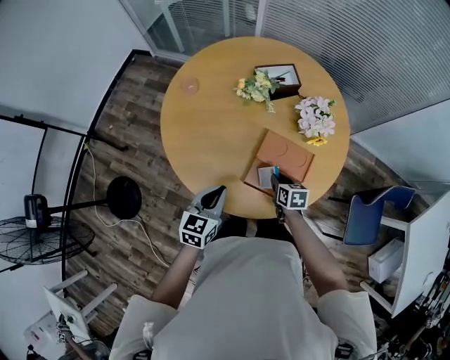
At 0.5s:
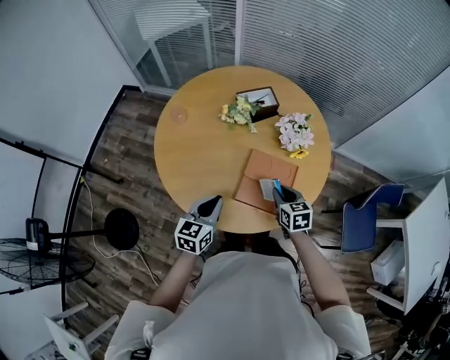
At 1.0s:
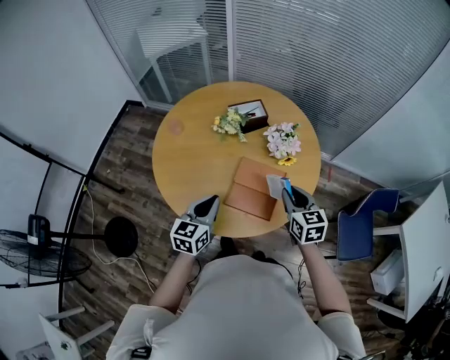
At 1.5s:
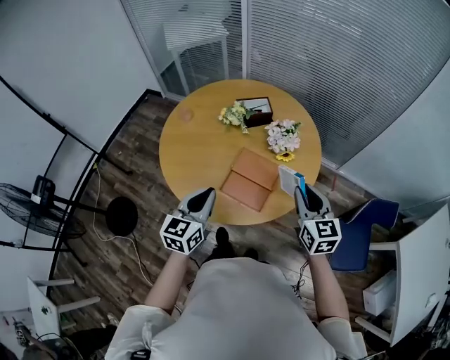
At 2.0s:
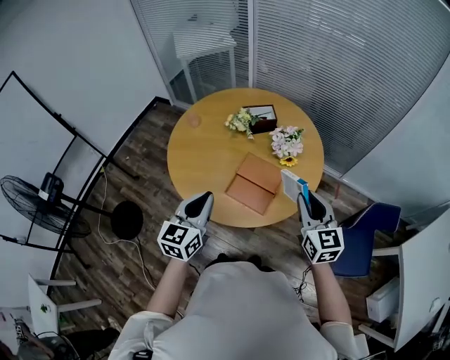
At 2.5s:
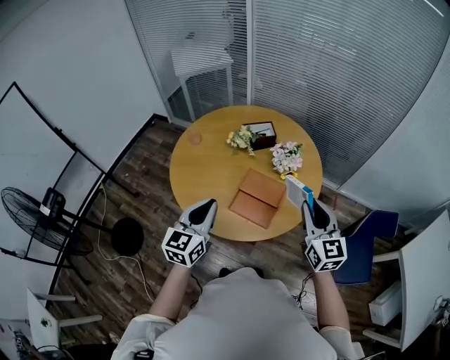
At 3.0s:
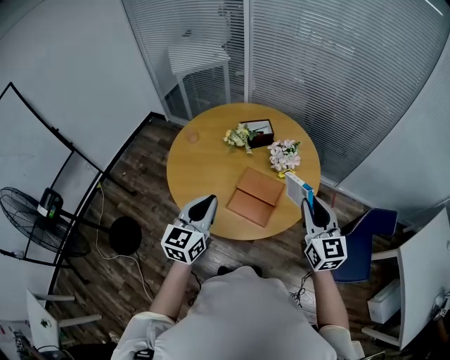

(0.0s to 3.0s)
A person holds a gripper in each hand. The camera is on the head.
0.0s - 1.5s: The left gripper goes approximately 20 cm upward, to the right and backward. The right gripper shifts some 40 cm upward and to the right, and tilts its fingers roughly 30 degrees upward.
1.5s - 3.0s: The two grippers go roughly 10 cm upward.

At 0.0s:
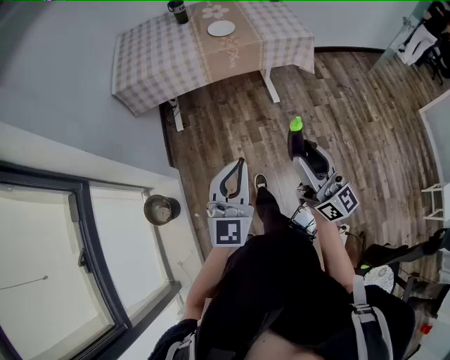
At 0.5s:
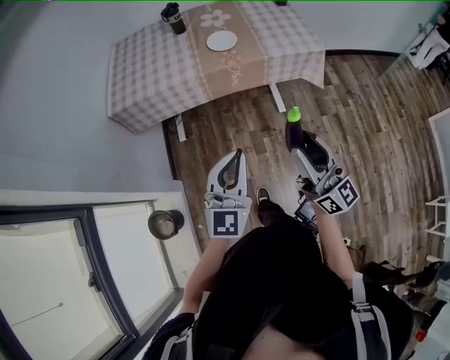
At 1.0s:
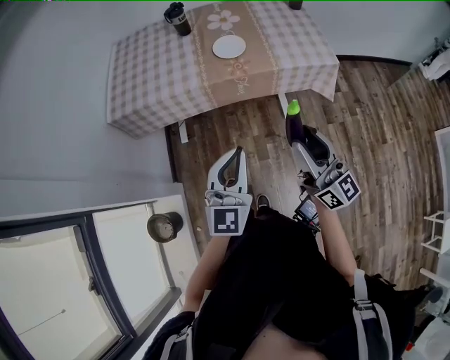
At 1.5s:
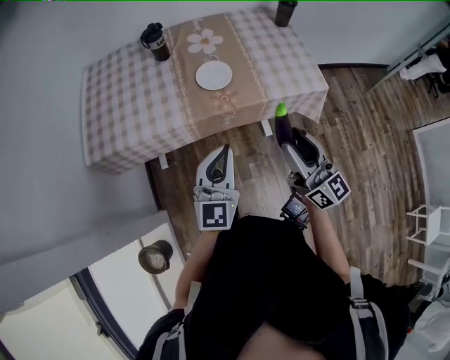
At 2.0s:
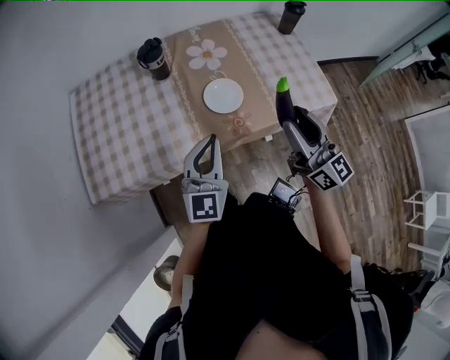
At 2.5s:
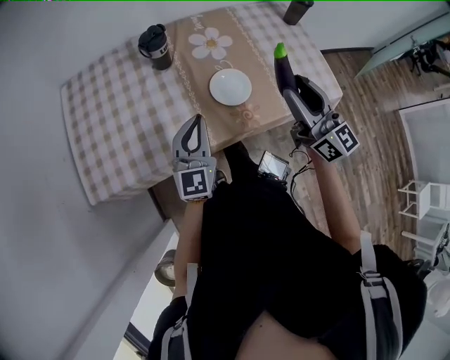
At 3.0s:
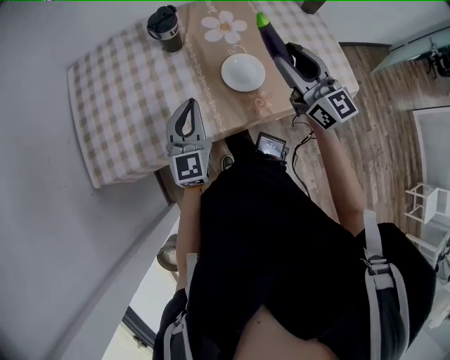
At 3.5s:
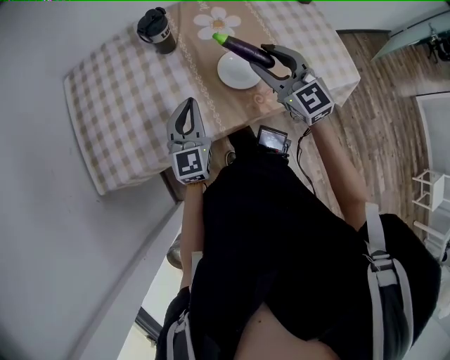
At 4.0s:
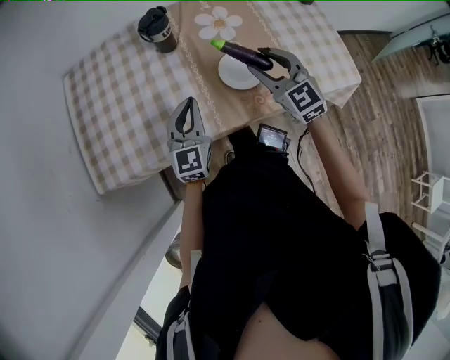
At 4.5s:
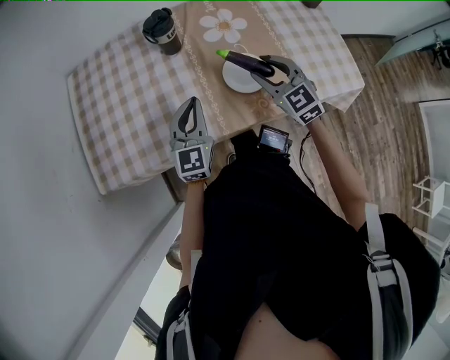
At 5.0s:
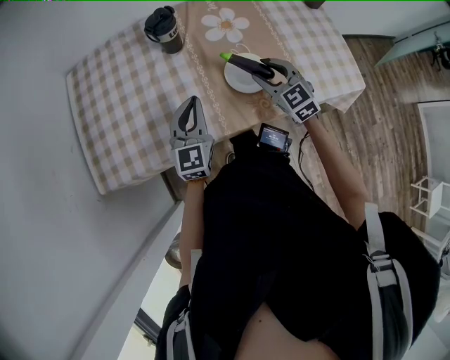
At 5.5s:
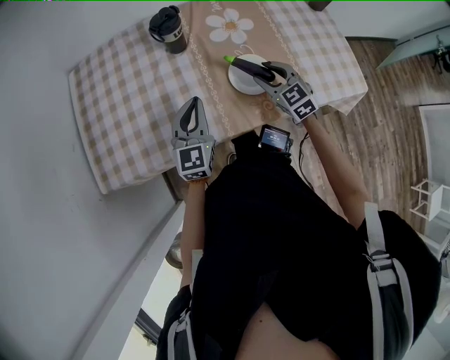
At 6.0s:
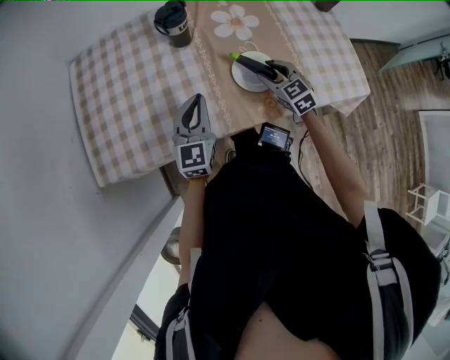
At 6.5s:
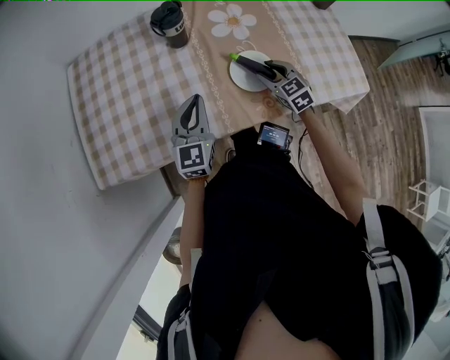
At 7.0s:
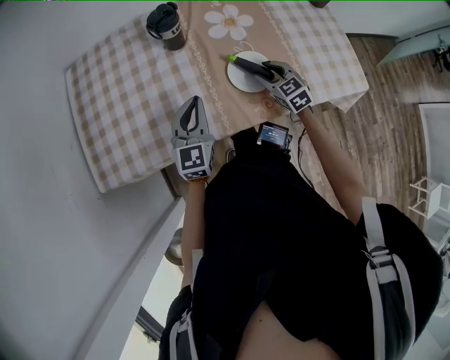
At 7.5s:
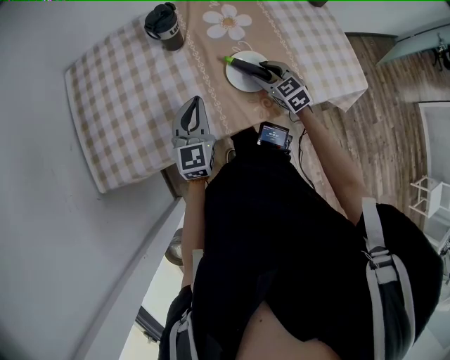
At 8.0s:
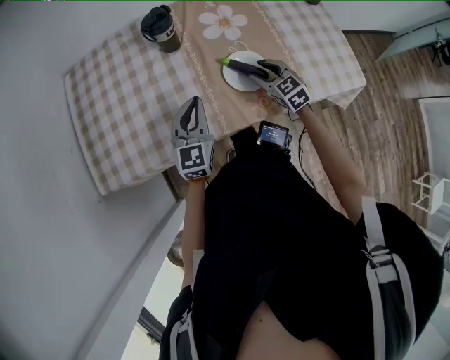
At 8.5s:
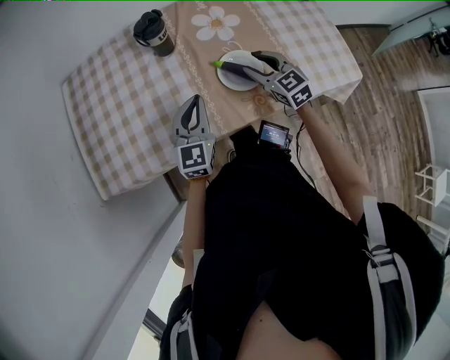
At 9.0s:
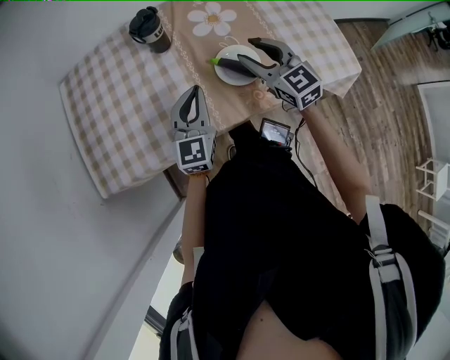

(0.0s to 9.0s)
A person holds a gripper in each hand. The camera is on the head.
0.0s - 2.0s: The two grippers travel together, forward, about 60 cm.
2.0s - 4.5s: Both grippers move forward, downward and to the left, about 25 cm. The right gripper points its fingers roughly 30 degrees further downward.
4.5s - 7.0s: The right gripper travels downward by approximately 15 cm.
7.0s - 9.0s: The right gripper travels upward by about 15 cm, and rotates roughly 20 degrees; the left gripper moves about 5 cm.

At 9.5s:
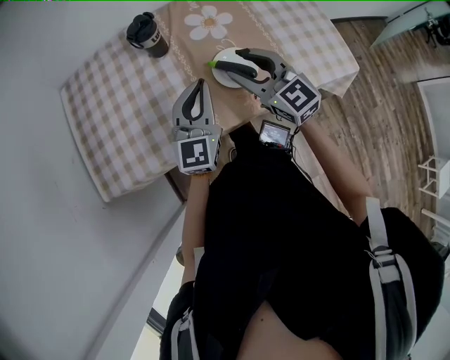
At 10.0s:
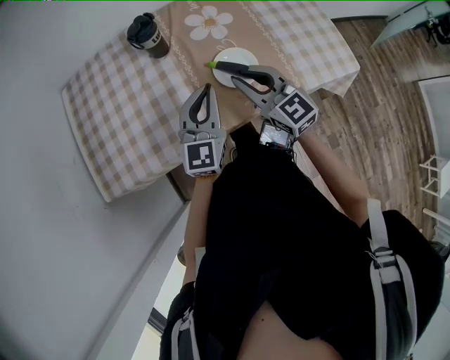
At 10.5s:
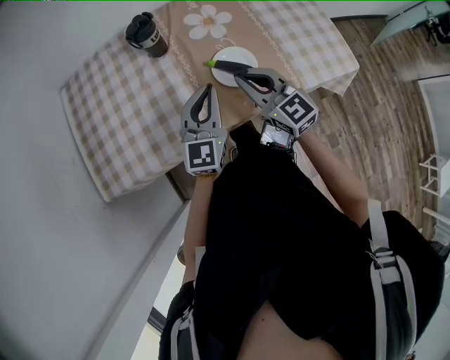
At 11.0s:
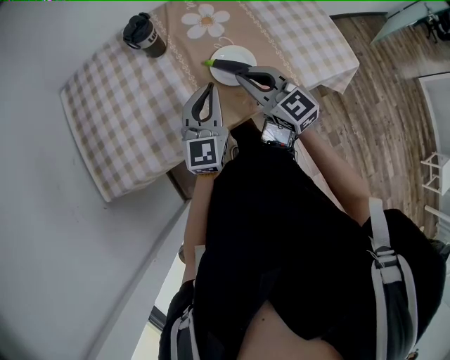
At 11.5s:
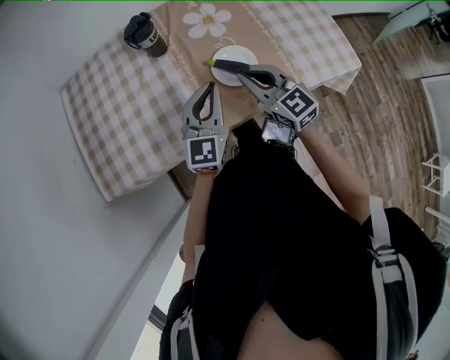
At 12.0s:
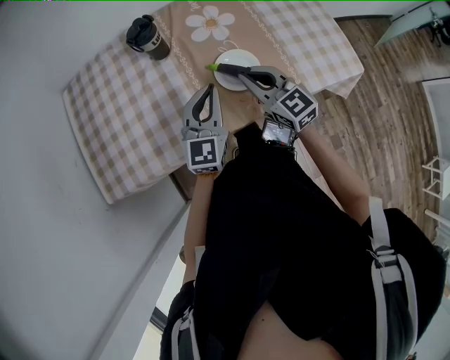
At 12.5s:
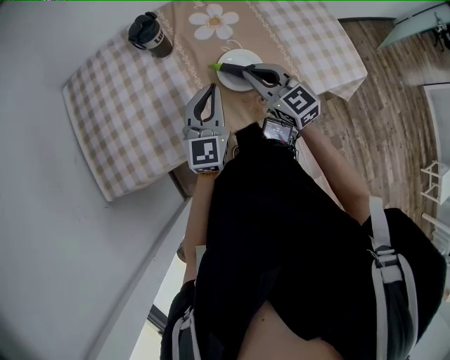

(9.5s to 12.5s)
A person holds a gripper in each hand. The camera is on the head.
9.5s - 11.0s: The right gripper moves some 5 cm, and closes up.
11.0s - 12.5s: The right gripper changes place by approximately 5 cm.

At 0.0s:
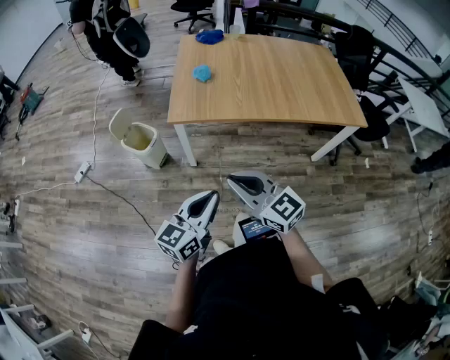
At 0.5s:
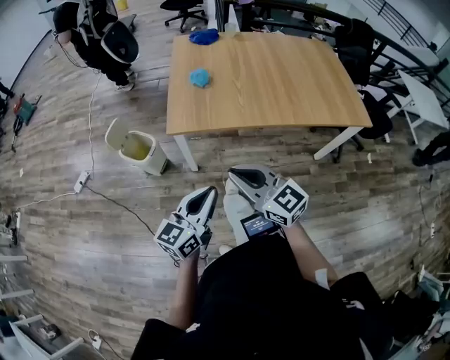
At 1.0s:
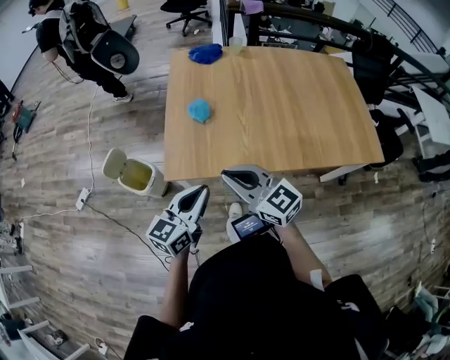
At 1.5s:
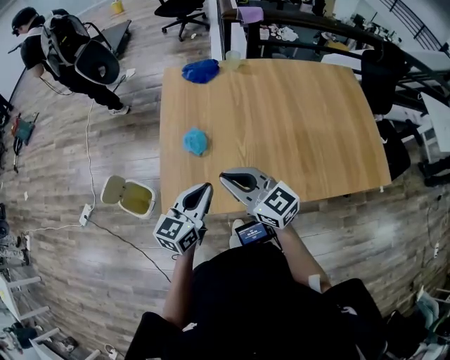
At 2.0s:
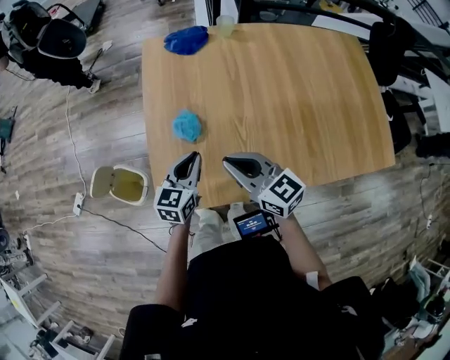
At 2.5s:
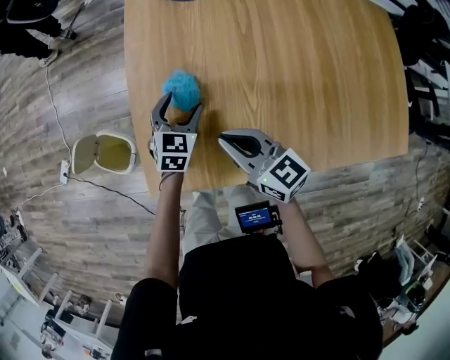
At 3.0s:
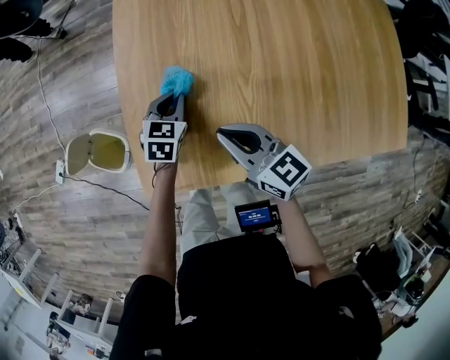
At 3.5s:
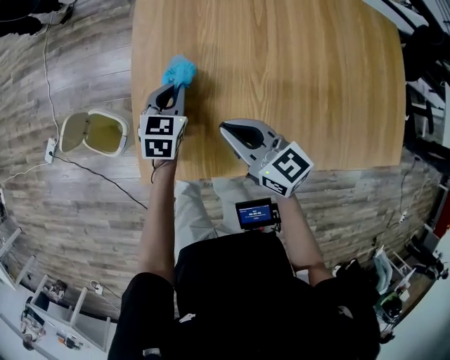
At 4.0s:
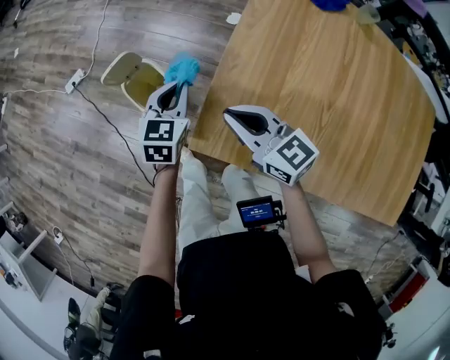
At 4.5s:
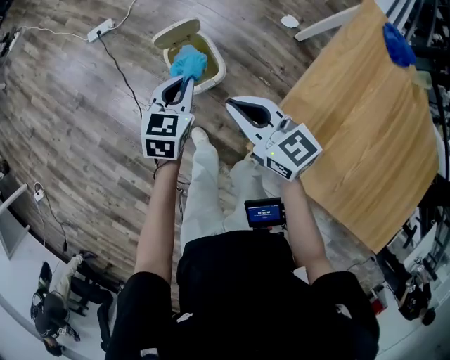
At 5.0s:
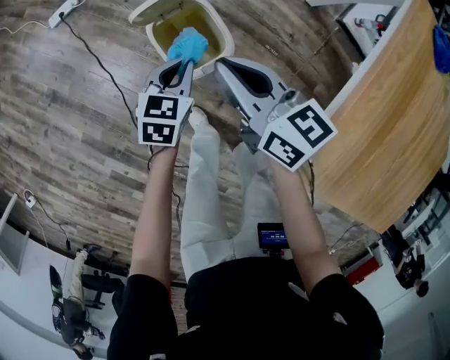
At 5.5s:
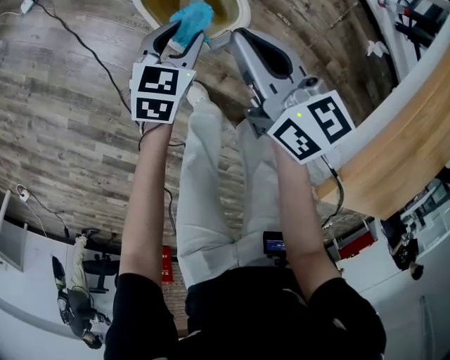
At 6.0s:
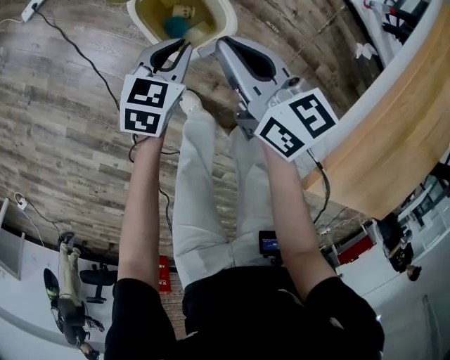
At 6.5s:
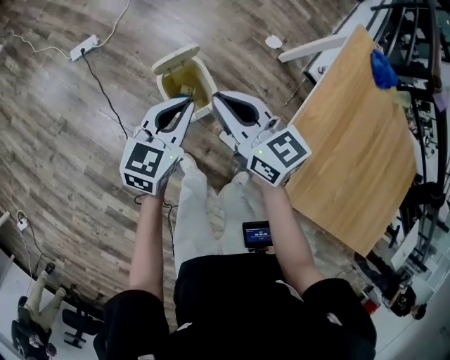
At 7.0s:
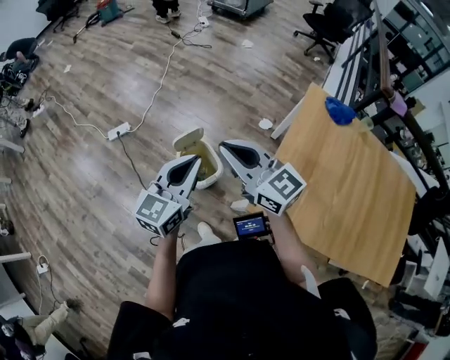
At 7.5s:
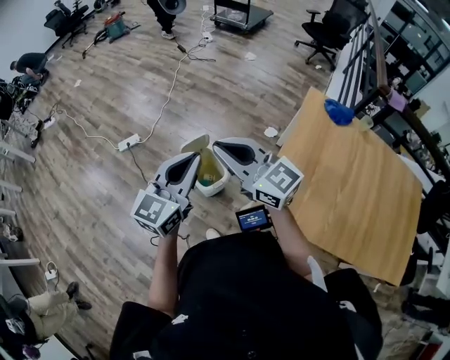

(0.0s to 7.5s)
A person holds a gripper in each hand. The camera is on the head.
0.0s - 2.0s: Both grippers are carried forward, some 60 cm. The left gripper swivels approximately 20 degrees.
2.0s - 4.0s: The right gripper shifts by roughly 25 cm, and turns by approximately 30 degrees; the left gripper ends up approximately 25 cm from where it was, turns by about 30 degrees, and opens, then closes once more.
4.0s - 5.5s: The right gripper goes about 40 cm downward, to the left and forward, and changes its angle by roughly 20 degrees, while the left gripper heads downward and to the left, covering approximately 40 cm, and opens up.
5.5s - 7.5s: The two grippers go some 60 cm upward. The left gripper tilts its fingers some 40 degrees upward, and closes. The right gripper turns by approximately 50 degrees.

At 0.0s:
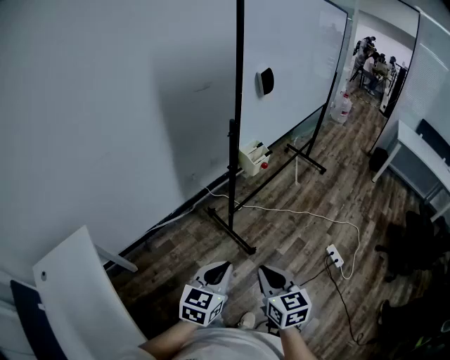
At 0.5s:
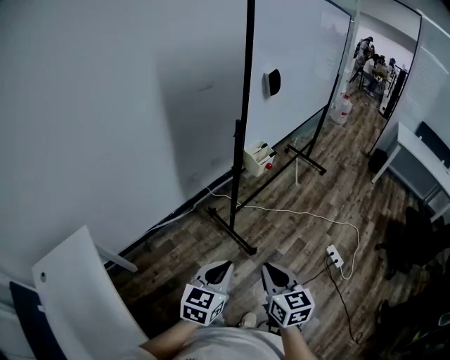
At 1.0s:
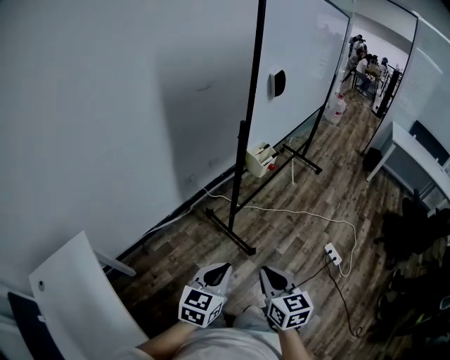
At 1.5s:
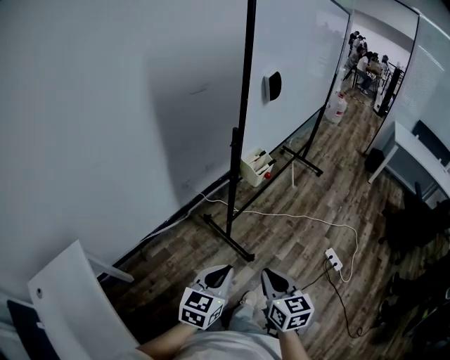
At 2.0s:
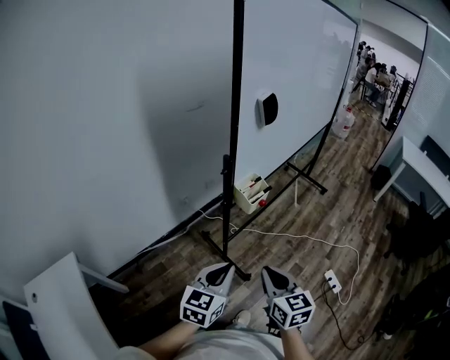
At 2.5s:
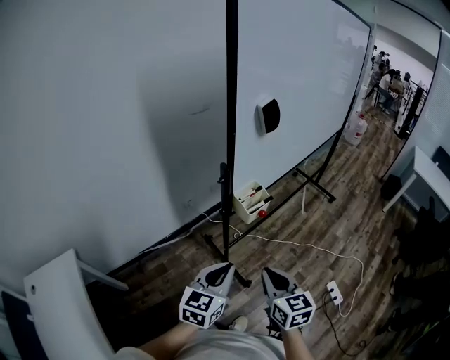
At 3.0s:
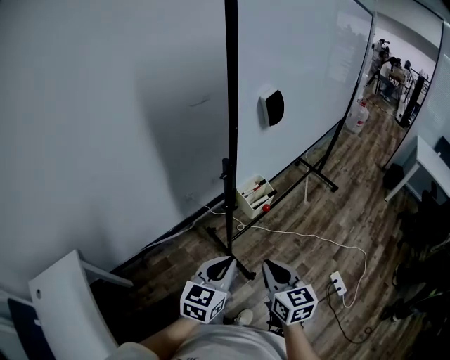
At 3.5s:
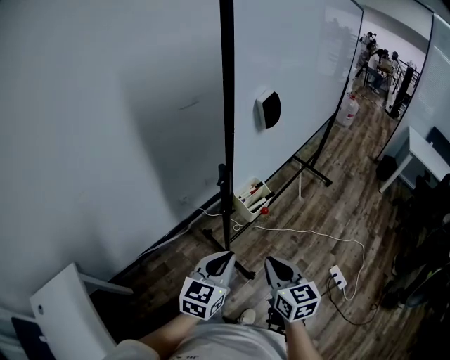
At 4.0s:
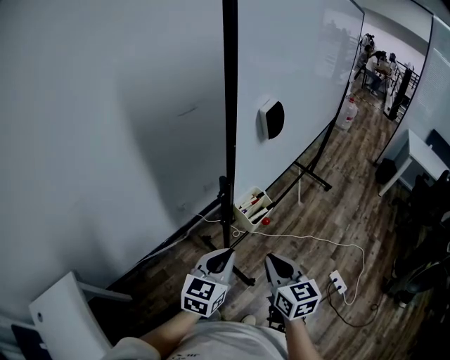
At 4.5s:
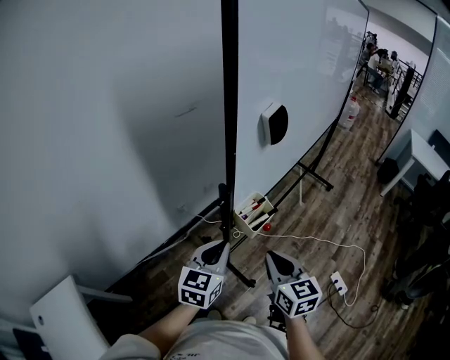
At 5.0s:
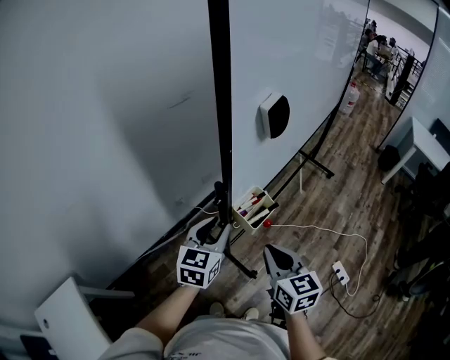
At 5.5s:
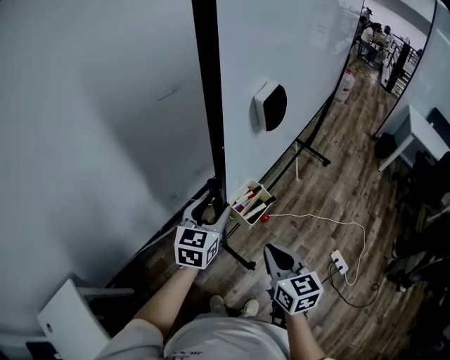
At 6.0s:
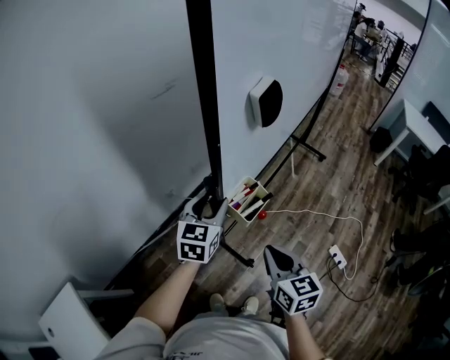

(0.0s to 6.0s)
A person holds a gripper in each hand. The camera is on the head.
0.0s - 2.0s: Both grippers move forward, about 20 cm.
2.0s - 4.0s: Both grippers move forward, about 15 cm.
4.0s - 6.0s: The left gripper is displaced forward by about 20 cm, and opens its fingers. The right gripper shifts by about 5 cm.
